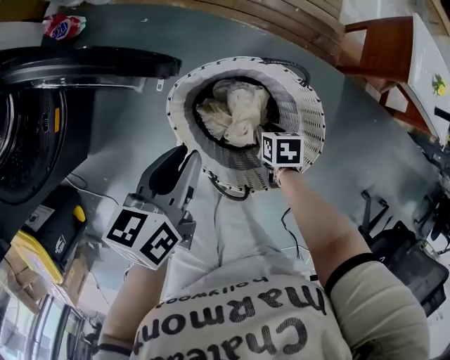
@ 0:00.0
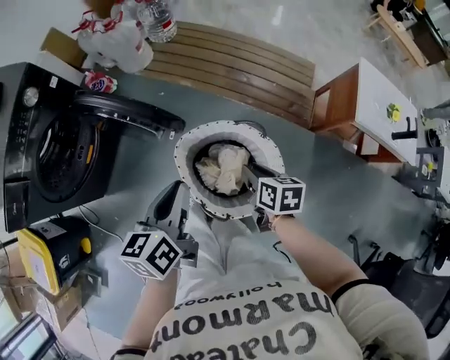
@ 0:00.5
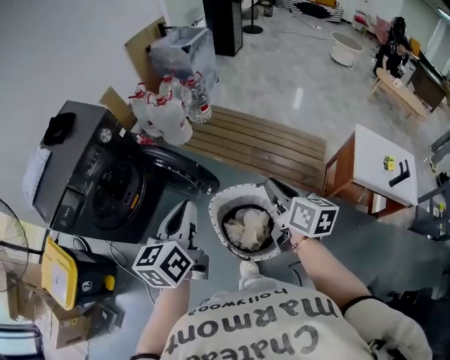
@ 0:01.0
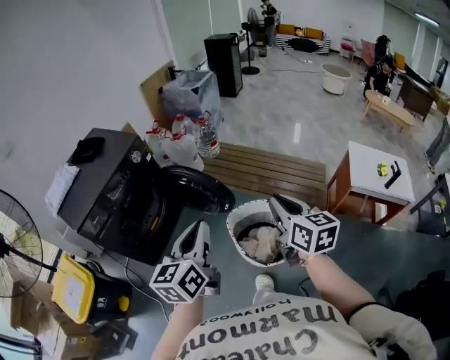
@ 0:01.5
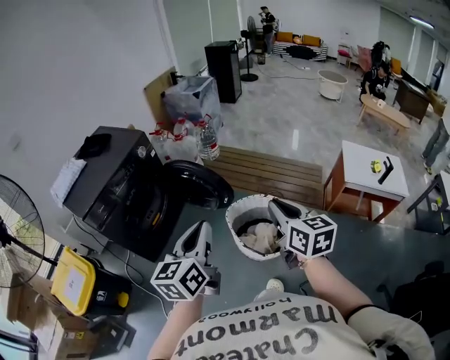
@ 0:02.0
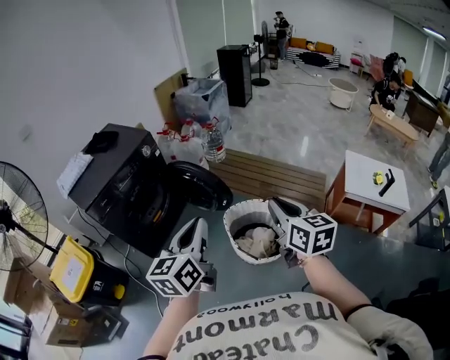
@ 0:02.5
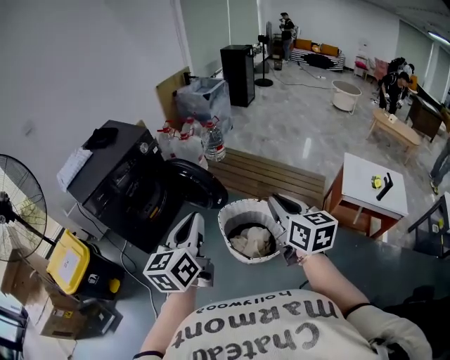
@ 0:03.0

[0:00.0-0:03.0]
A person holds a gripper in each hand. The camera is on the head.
0:00.0 to 0:01.5: The left gripper moves upward and backward, some 50 cm, and angles its fingers upward, by about 30 degrees. Meanwhile the right gripper moves upward, roughly 60 cm, tips its fingers upward by some 60 degrees, and closes.
0:01.5 to 0:03.0: The left gripper travels backward by some 10 cm, while the right gripper is displaced backward and to the right by roughly 10 cm.

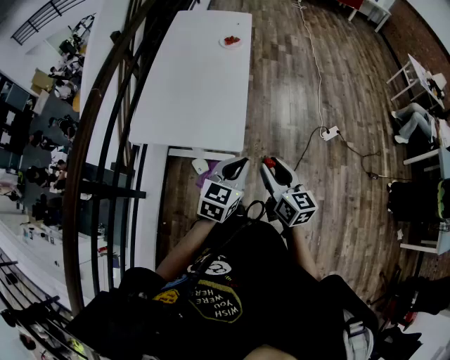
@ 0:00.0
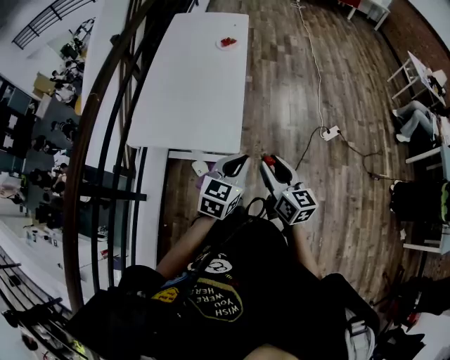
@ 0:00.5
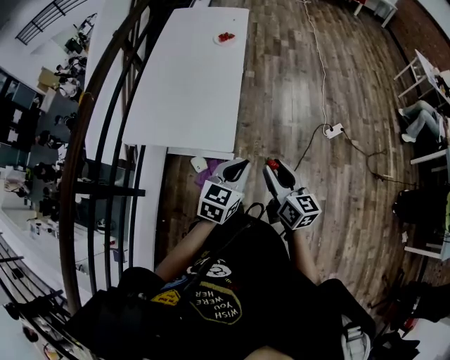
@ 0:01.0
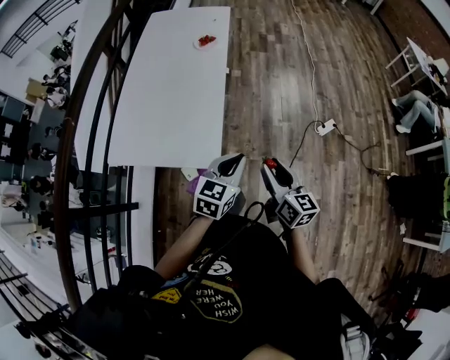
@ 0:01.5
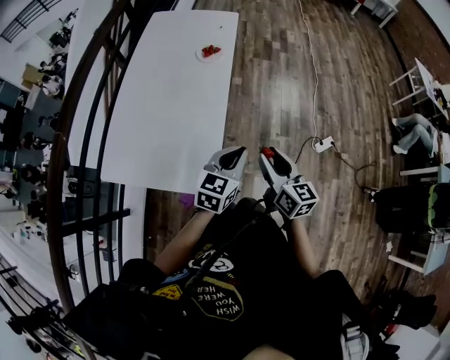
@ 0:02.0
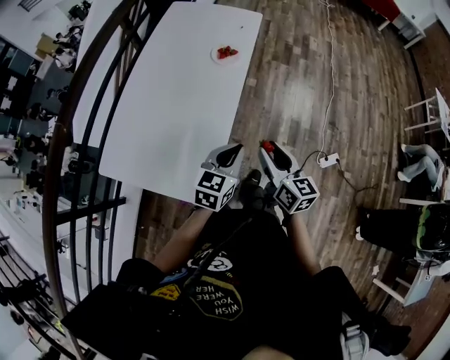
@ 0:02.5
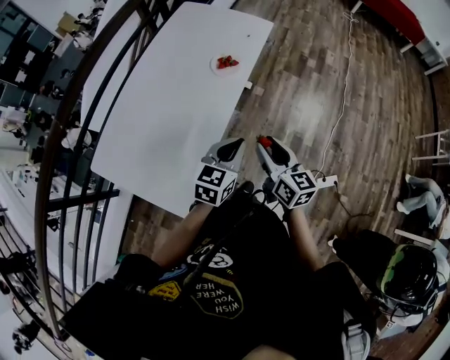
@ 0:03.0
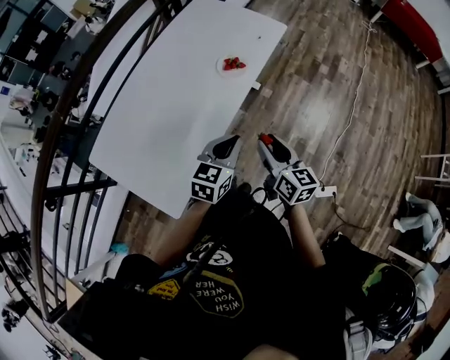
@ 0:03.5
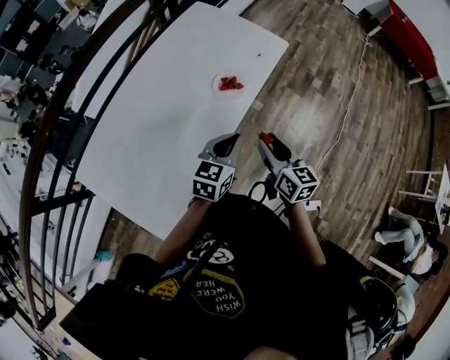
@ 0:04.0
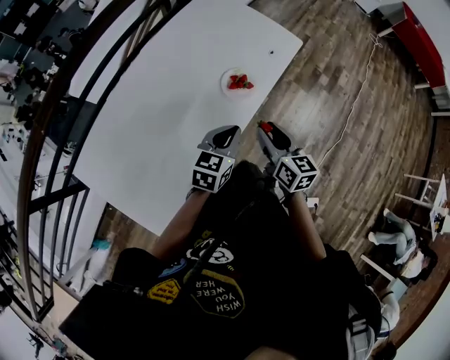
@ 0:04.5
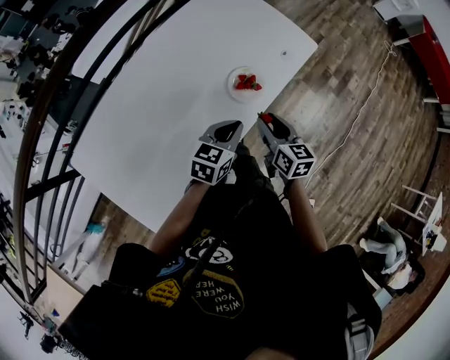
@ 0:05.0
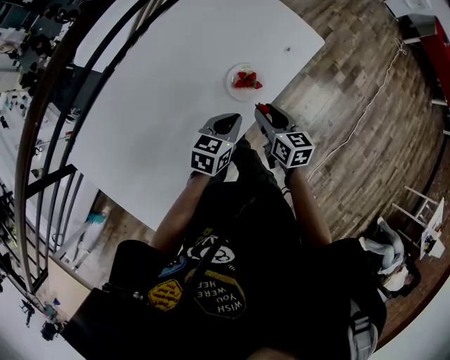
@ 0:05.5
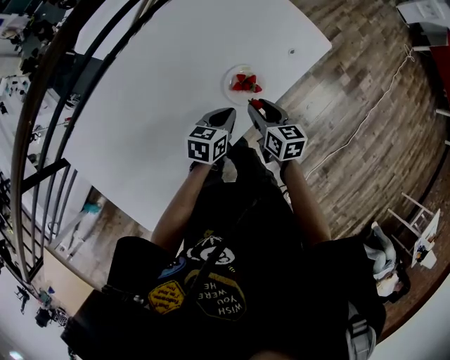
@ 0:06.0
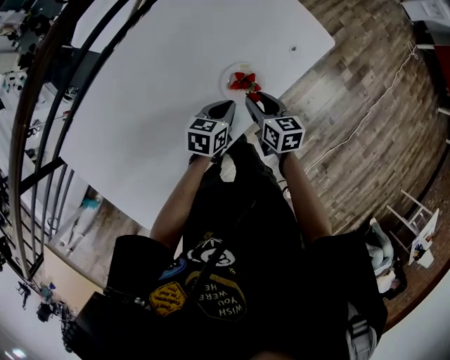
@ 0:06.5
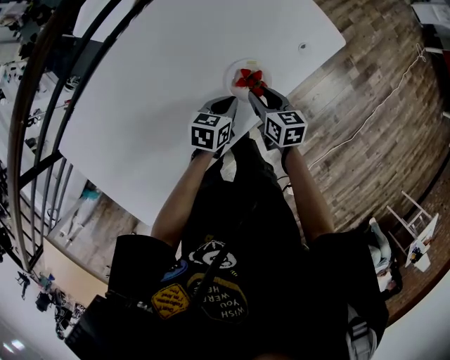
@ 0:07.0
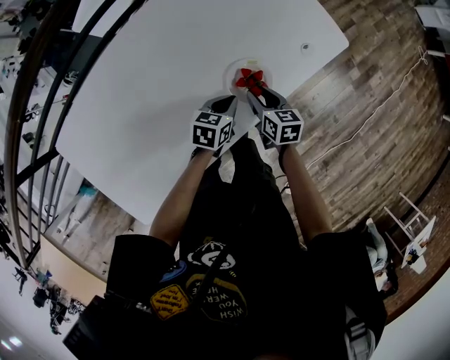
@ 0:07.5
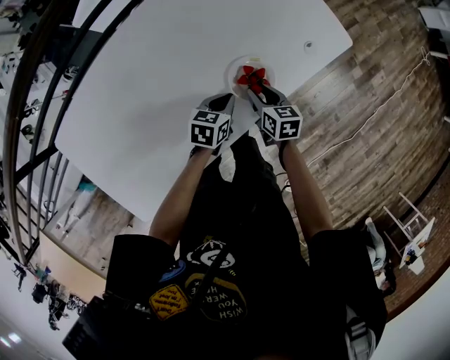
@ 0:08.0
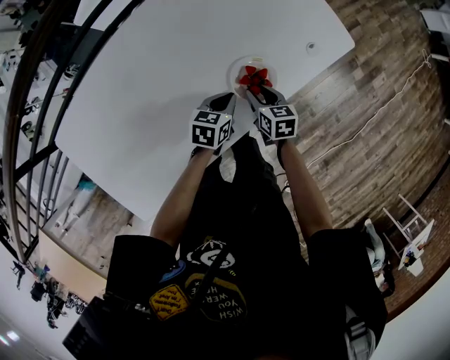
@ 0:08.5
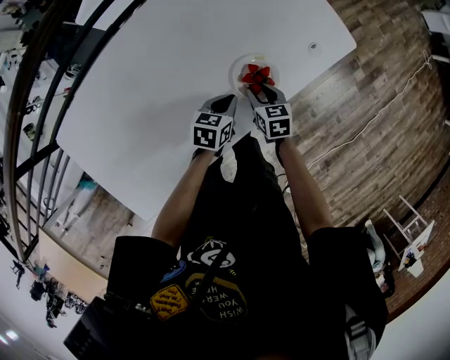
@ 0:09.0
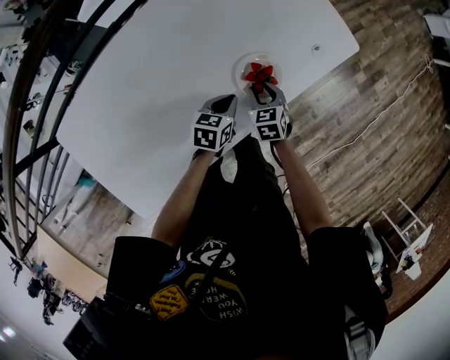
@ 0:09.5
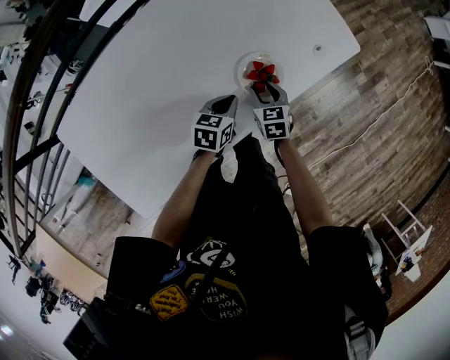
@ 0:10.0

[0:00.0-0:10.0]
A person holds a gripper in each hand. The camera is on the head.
0:00.0 to 0:02.0: Both grippers travel together forward, some 30 cm.
0:02.0 to 0:04.0: The right gripper ends up about 40 cm from where it was, and turns by approximately 30 degrees; the left gripper shifts by some 35 cm, and changes its angle by approximately 30 degrees.
0:04.0 to 0:06.0: Both grippers travel together forward and downward, approximately 25 cm. The left gripper rotates roughly 30 degrees, while the right gripper rotates approximately 20 degrees.
0:06.0 to 0:08.0: Both grippers travel together downward, some 10 cm.
0:08.0 to 0:10.0: The right gripper turns by about 20 degrees.

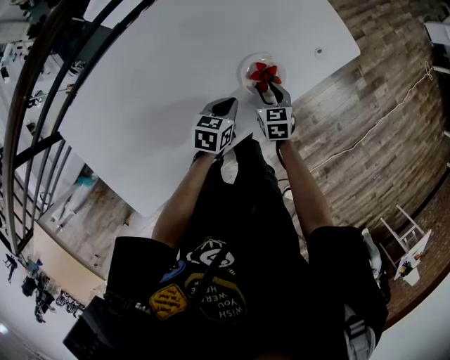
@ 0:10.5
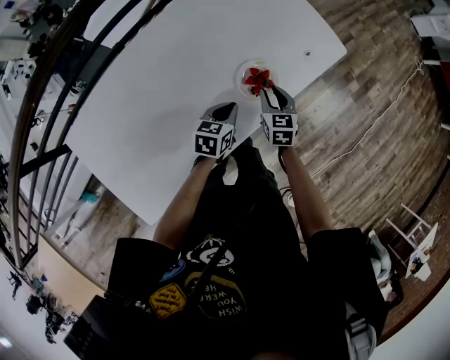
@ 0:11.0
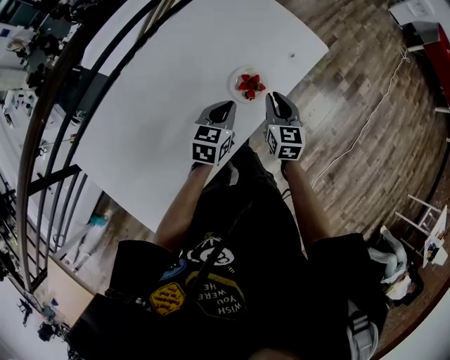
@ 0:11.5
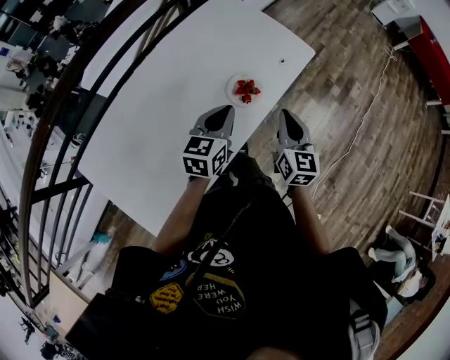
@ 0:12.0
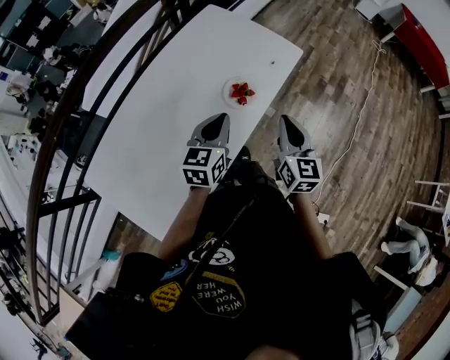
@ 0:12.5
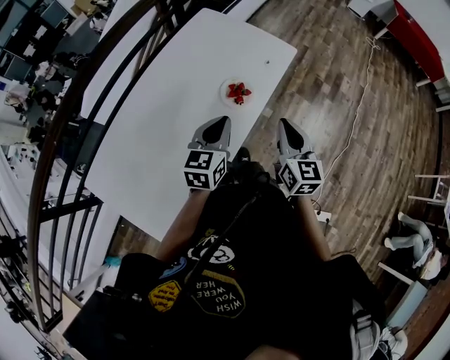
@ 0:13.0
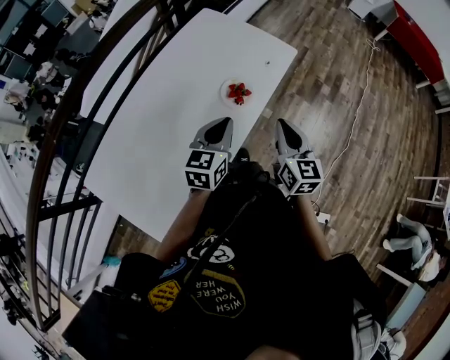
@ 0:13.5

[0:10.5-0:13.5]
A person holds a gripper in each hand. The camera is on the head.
0:10.5 to 0:12.0: Both grippers travel together upward, approximately 25 cm. The left gripper swivels about 30 degrees; the right gripper tips its fingers upward by roughly 30 degrees, and closes its fingers.
0:12.0 to 0:13.5: The two grippers go approximately 5 cm backward.

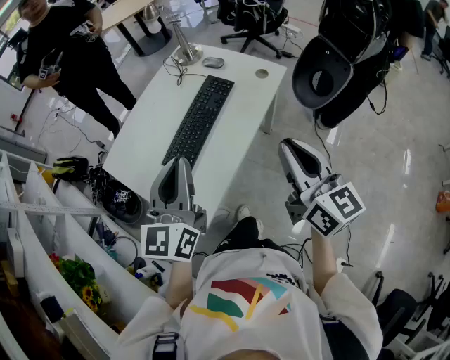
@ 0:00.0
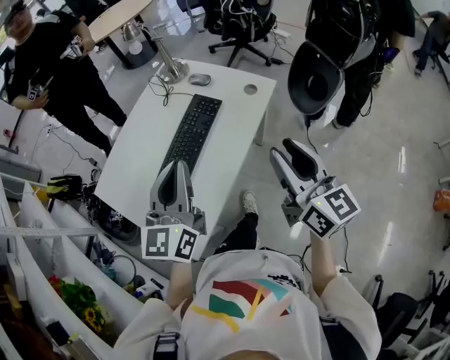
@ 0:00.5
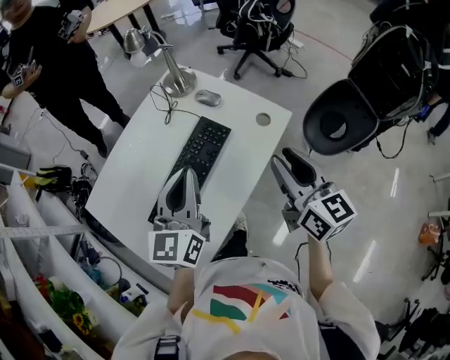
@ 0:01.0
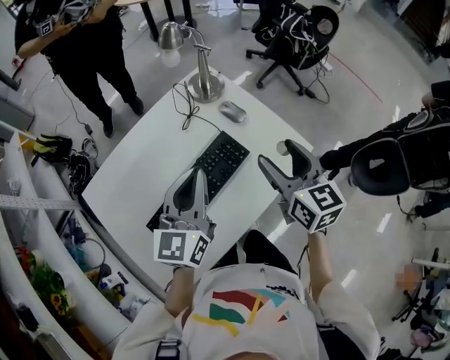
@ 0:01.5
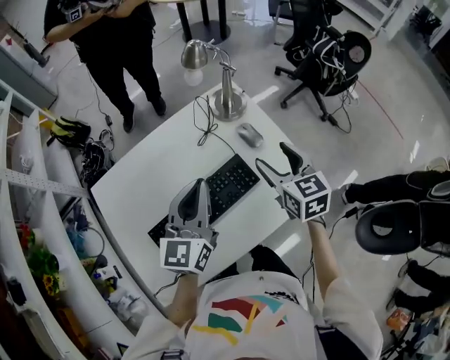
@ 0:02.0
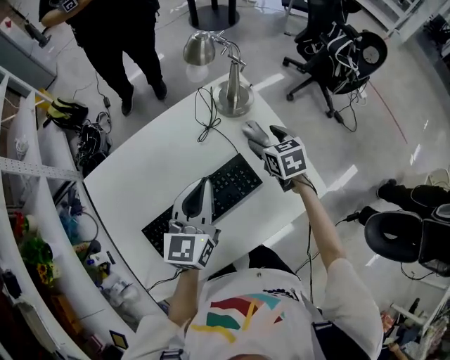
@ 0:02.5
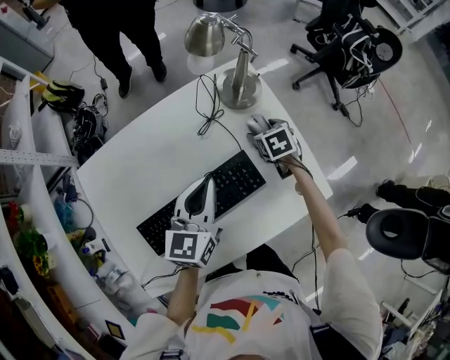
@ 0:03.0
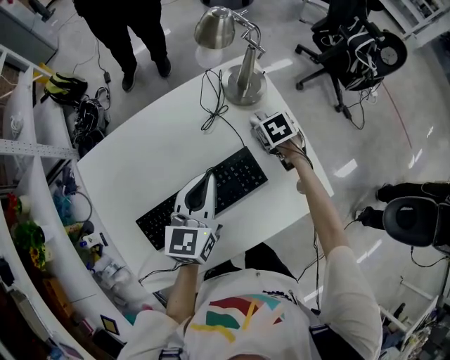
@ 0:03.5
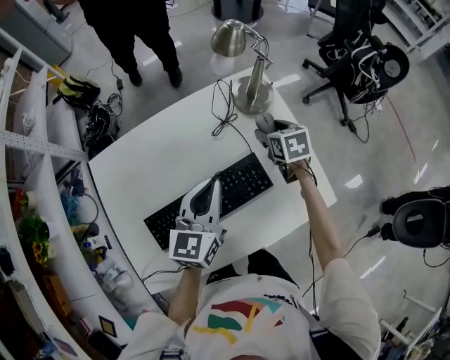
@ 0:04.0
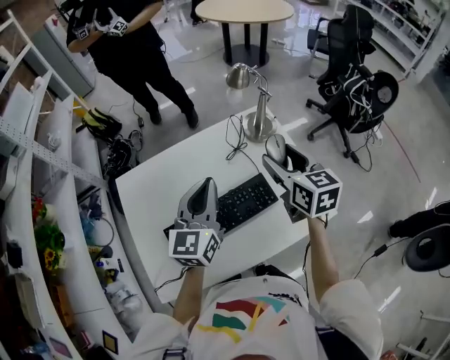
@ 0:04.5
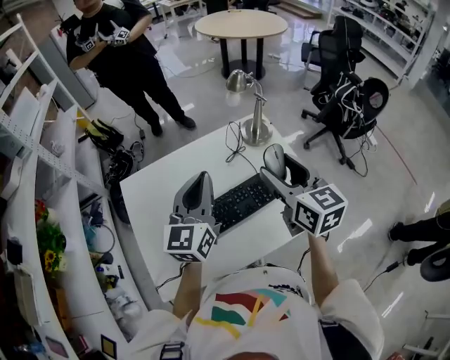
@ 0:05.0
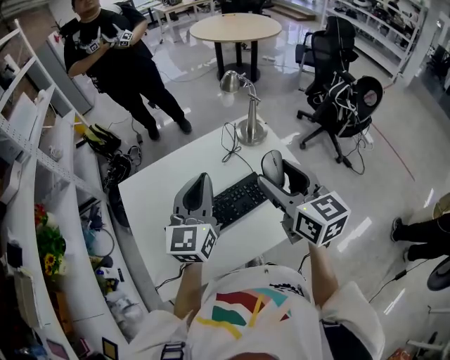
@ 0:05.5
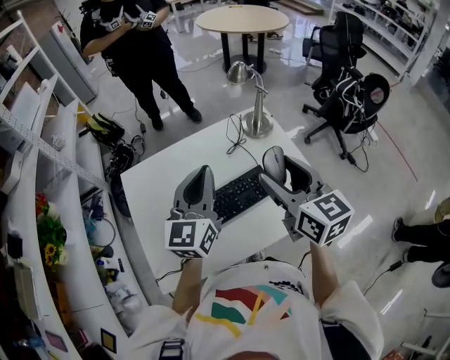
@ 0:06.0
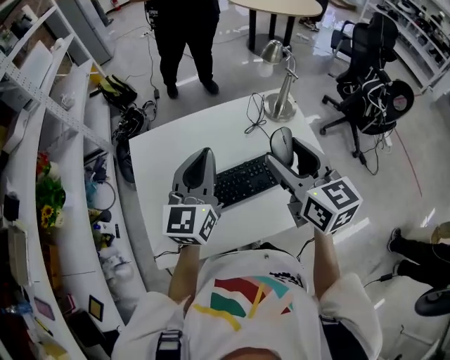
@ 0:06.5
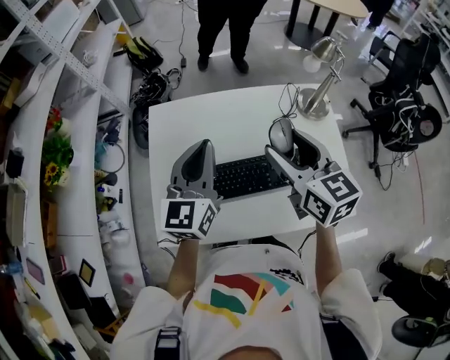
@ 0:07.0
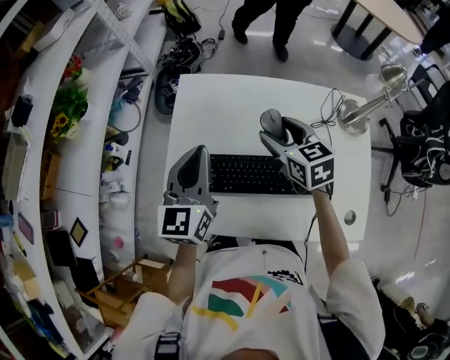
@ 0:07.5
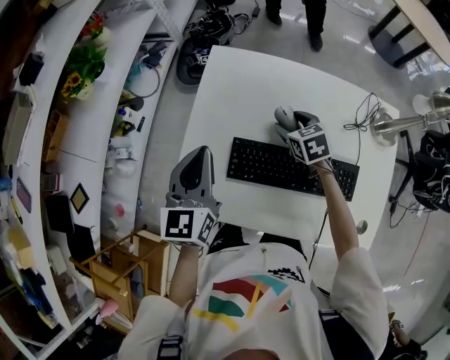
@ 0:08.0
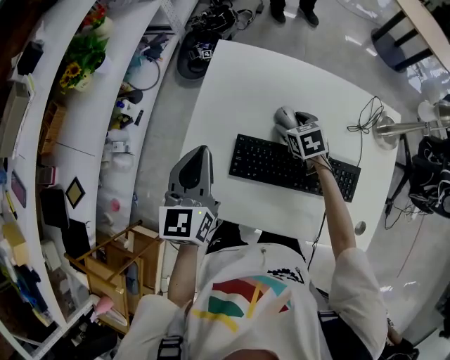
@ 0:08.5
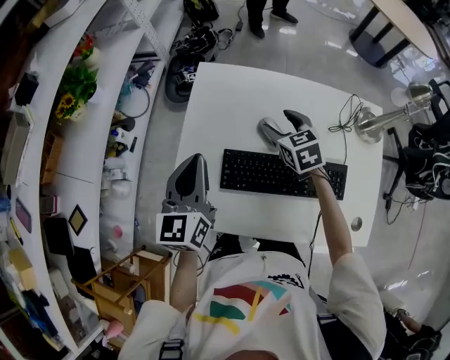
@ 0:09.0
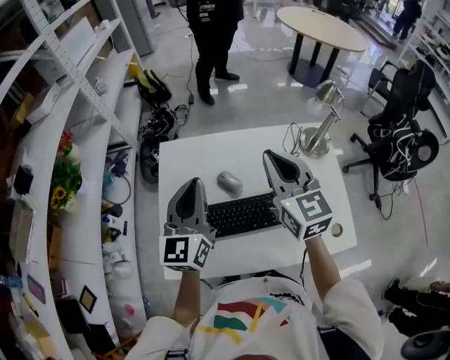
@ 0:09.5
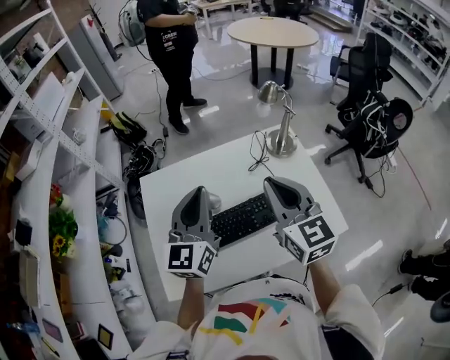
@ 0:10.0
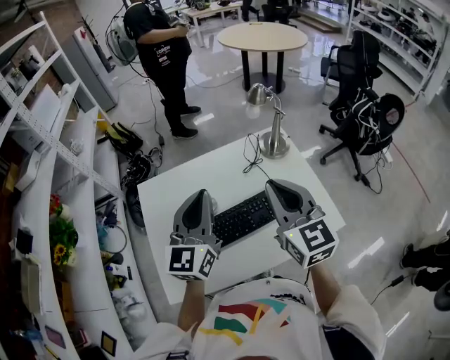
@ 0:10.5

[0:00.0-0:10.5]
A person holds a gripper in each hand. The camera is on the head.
0:00.0 to 0:02.0: Both grippers travel together forward, about 40 cm. The right gripper rotates roughly 40 degrees, and opens up. Meanwhile the left gripper rotates approximately 20 degrees.
0:02.0 to 0:04.0: The left gripper is displaced downward by approximately 5 cm. The right gripper goes roughly 20 cm forward and downward, and rotates approximately 20 degrees.
0:04.0 to 0:06.5: The right gripper shifts approximately 40 cm upward, backward and to the left, and angles its fingers upward, by about 40 degrees. Meanwhile the left gripper moves upward, to the left and backward, roughly 20 cm, and rotates roughly 20 degrees.
0:06.5 to 0:08.5: The right gripper shifts some 35 cm downward, and tilts its fingers some 40 degrees downward; the left gripper changes place by about 30 cm, and swivels some 40 degrees.
0:08.5 to 0:10.5: The left gripper ends up some 30 cm from where it was, and changes its angle by some 40 degrees. Meanwhile the right gripper is displaced upward by roughly 35 cm, points its fingers some 50 degrees further upward, and closes.
